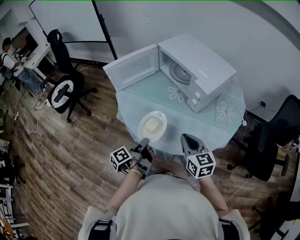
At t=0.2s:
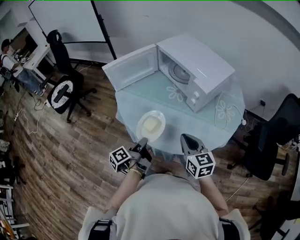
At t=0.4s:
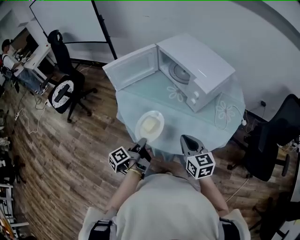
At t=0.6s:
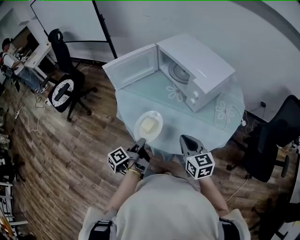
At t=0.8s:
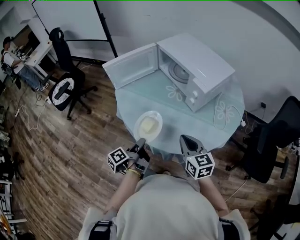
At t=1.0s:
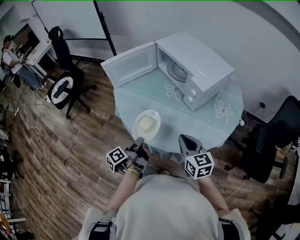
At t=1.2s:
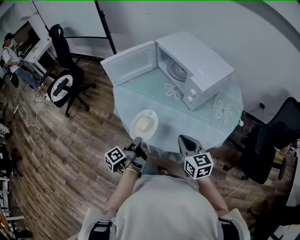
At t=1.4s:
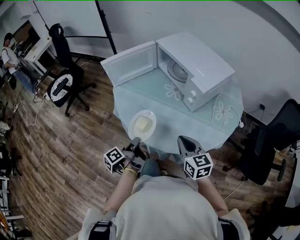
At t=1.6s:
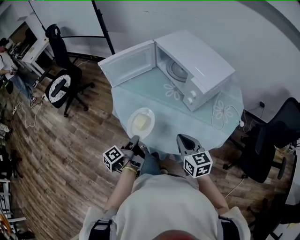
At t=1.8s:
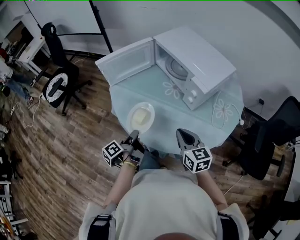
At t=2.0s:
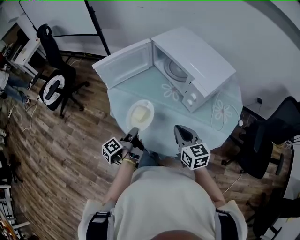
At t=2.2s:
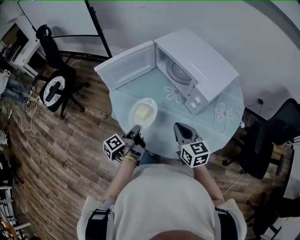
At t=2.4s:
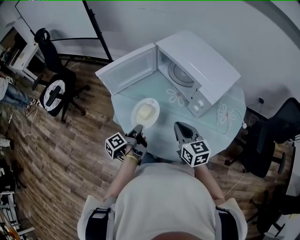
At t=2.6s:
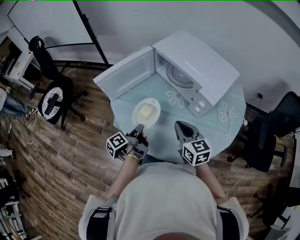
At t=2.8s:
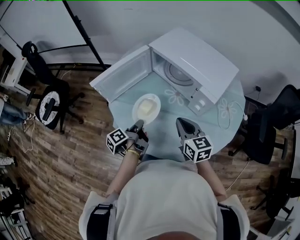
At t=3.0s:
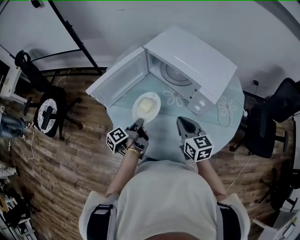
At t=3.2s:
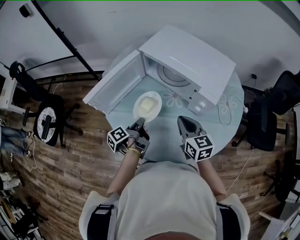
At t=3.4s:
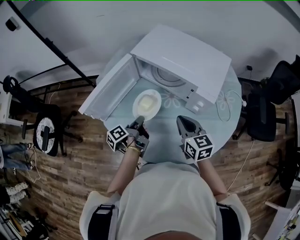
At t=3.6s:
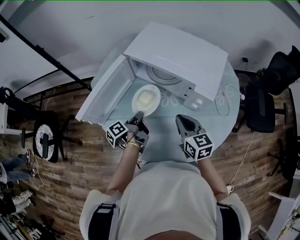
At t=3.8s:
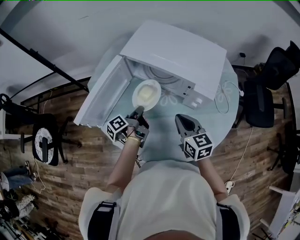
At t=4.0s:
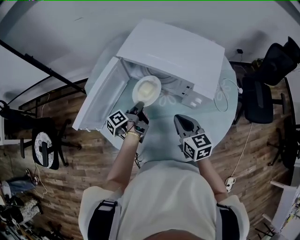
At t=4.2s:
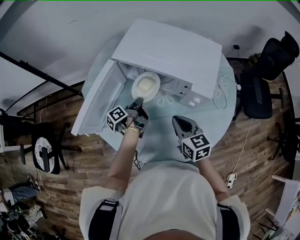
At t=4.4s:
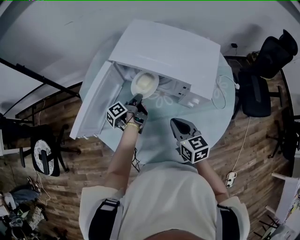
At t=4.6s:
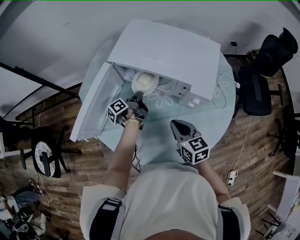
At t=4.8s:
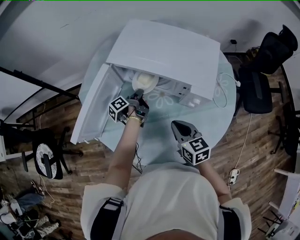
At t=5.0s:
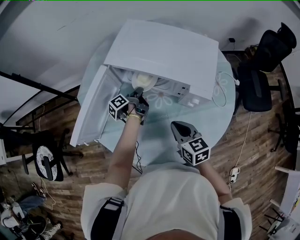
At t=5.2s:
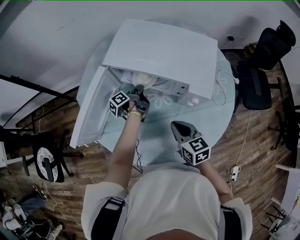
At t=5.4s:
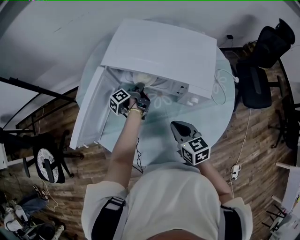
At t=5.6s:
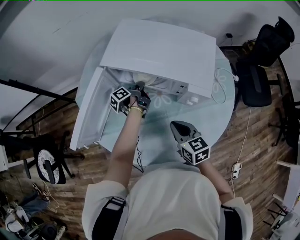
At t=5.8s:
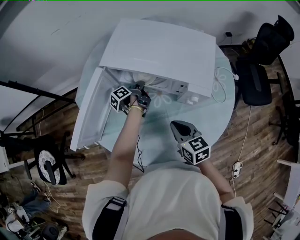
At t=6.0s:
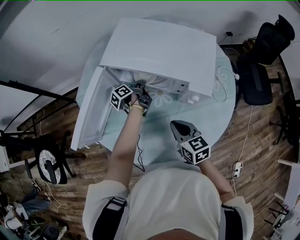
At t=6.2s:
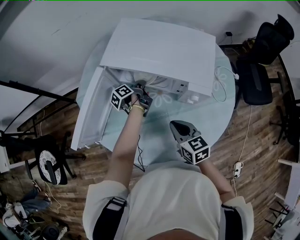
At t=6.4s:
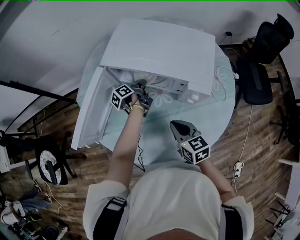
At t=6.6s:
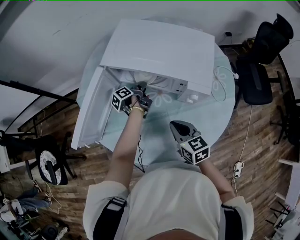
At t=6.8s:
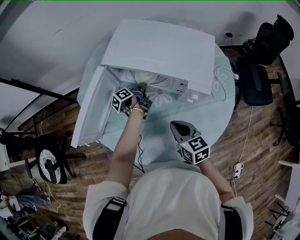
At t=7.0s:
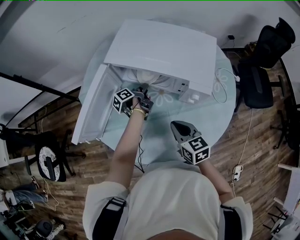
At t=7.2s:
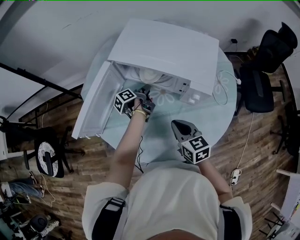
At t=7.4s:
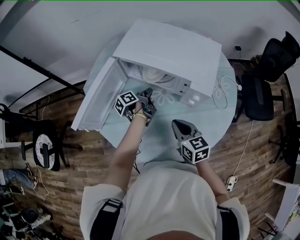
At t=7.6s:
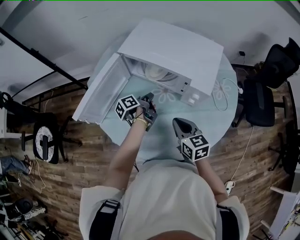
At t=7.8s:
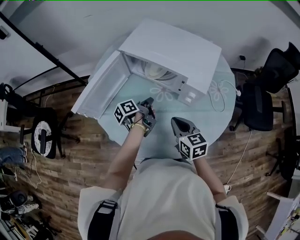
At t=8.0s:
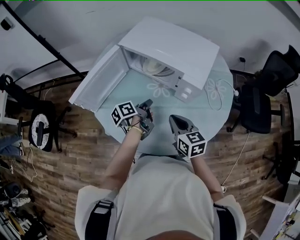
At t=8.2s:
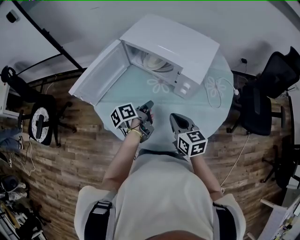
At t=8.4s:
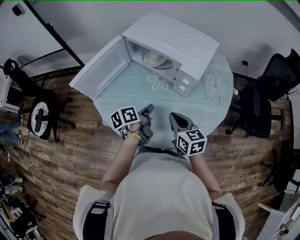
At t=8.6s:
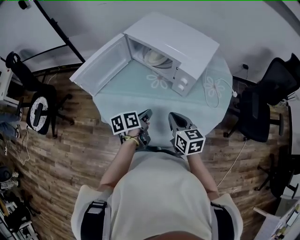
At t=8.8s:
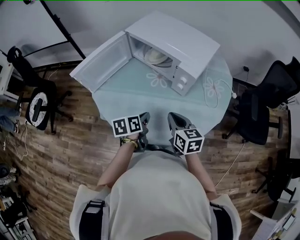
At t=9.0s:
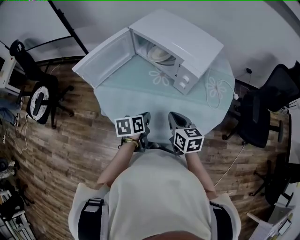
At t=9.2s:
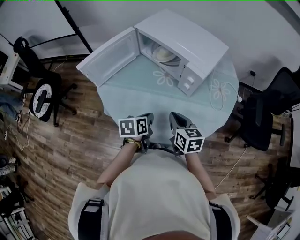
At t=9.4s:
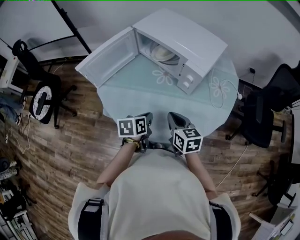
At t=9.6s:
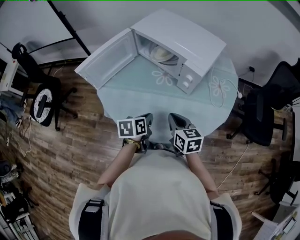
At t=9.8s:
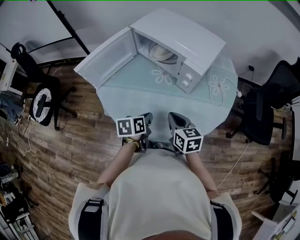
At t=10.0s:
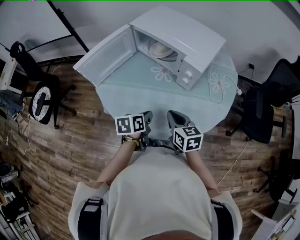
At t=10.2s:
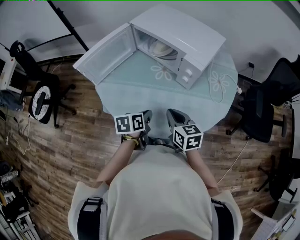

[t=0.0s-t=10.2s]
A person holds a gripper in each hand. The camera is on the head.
t=1.4s to t=3.0s: The right gripper changes place by approximately 20 cm.
t=3.0s to t=4.4s: The right gripper changes place by some 5 cm.
t=7.2s to t=8.8s: The right gripper moves about 10 cm.

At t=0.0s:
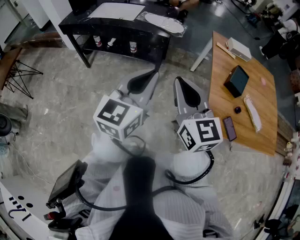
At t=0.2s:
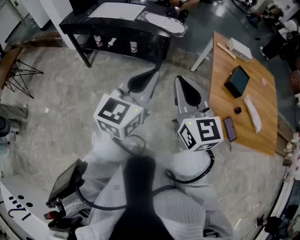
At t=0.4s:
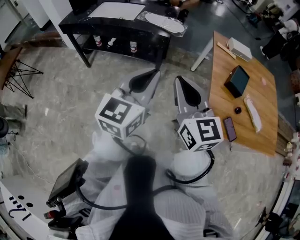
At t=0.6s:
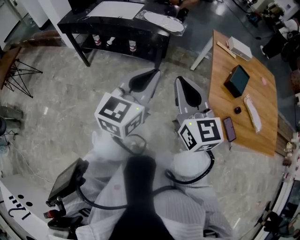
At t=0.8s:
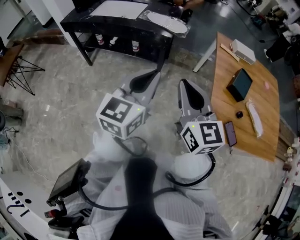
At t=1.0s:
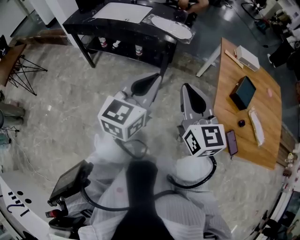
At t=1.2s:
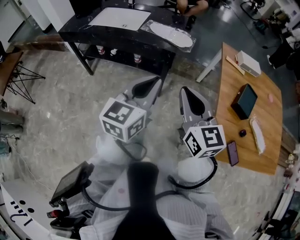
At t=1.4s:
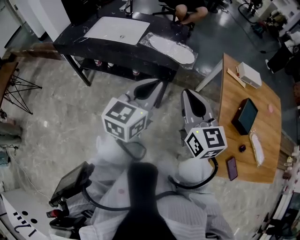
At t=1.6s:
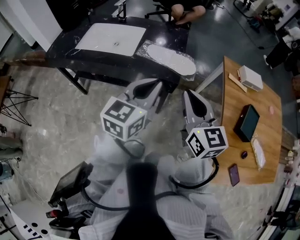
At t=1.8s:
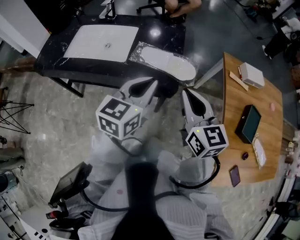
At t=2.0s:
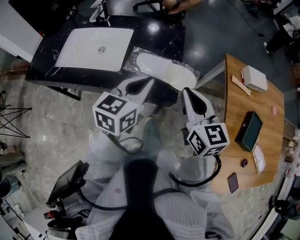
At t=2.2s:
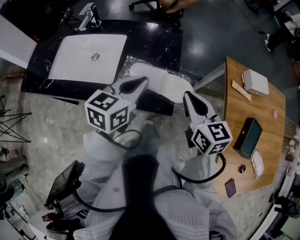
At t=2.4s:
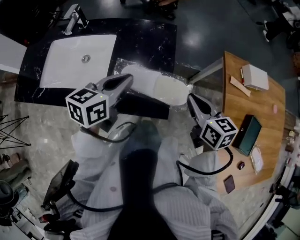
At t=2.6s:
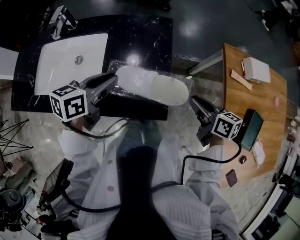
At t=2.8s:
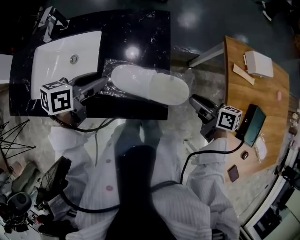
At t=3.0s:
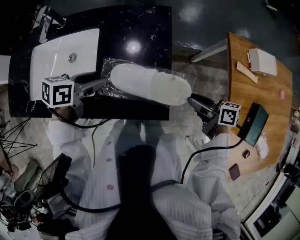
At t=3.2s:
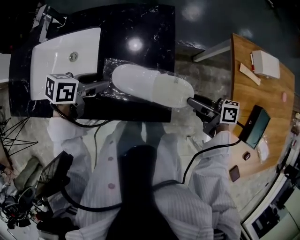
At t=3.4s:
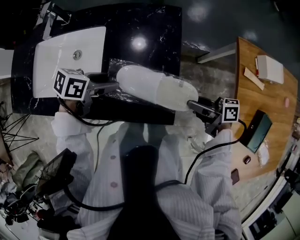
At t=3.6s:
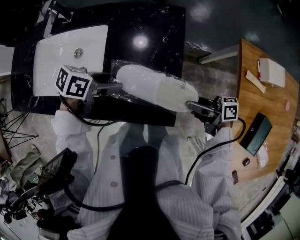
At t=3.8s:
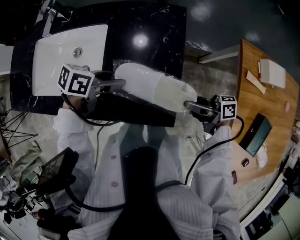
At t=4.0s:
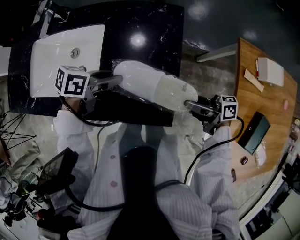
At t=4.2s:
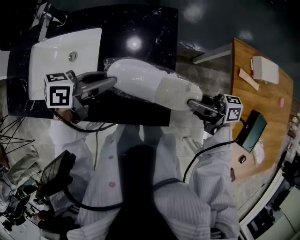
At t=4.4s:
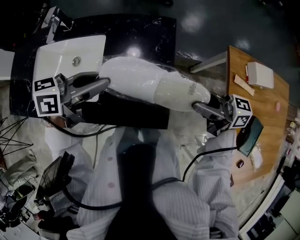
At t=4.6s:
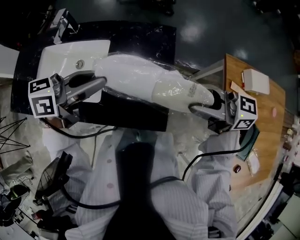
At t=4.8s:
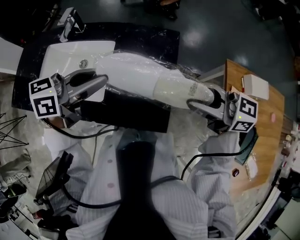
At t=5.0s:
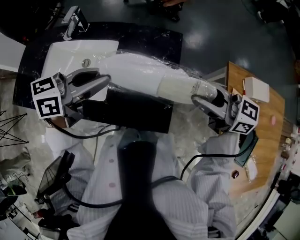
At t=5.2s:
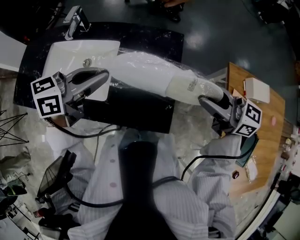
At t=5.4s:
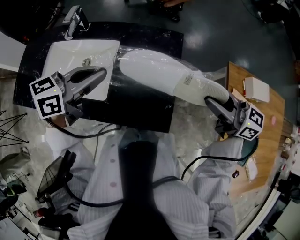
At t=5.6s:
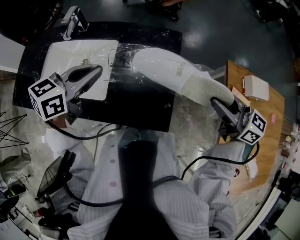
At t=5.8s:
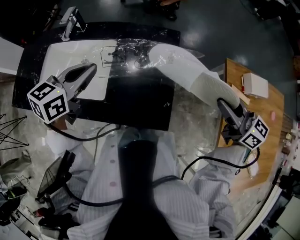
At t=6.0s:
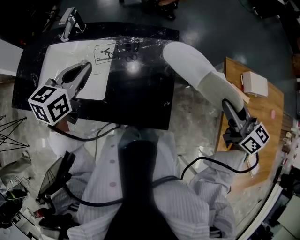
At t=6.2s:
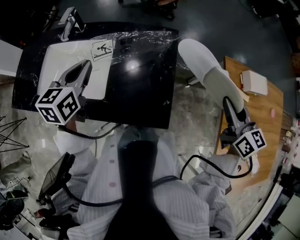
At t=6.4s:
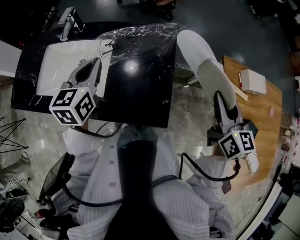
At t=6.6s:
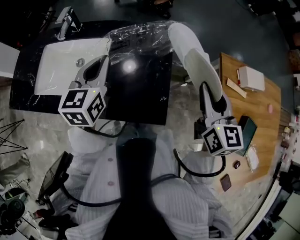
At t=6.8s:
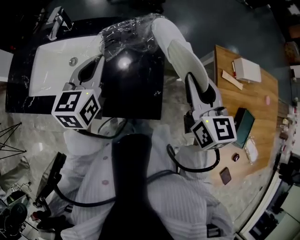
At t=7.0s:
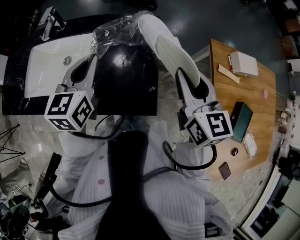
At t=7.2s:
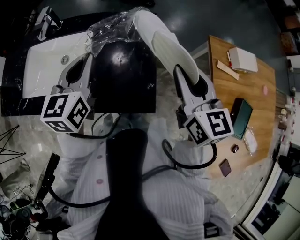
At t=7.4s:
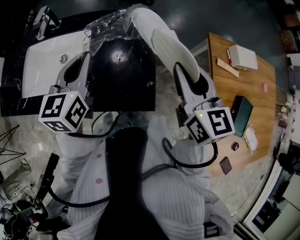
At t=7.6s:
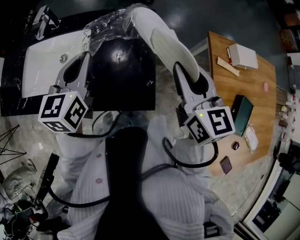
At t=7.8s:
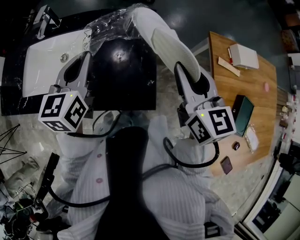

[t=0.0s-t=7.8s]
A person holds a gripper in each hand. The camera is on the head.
t=0.0s to t=1.6s: Both grippers travel together backward, roughly 20 cm.
t=1.6s to t=3.2s: The left gripper shifts by some 40 cm, angles its fingers downward, by approximately 30 degrees, and opens. The right gripper changes place by approximately 40 cm, twists roughly 60 degrees clockwise, seen from behind, and opens up.
t=3.2s to t=4.6s: The grippers both shift upward by approximately 20 cm. The right gripper rolls counterclockwise, seen from behind, by roughly 40 degrees; the left gripper swivels approximately 30 degrees, and closes.
t=4.6s to t=6.2s: The right gripper moves about 15 cm, and changes its angle by roughly 60 degrees, while the left gripper changes place by approximately 10 cm, and swivels roughly 50 degrees.
t=6.2s to t=7.8s: The right gripper goes about 10 cm to the left. The left gripper moves to the right, approximately 10 cm.

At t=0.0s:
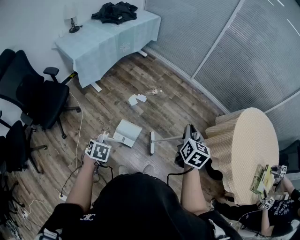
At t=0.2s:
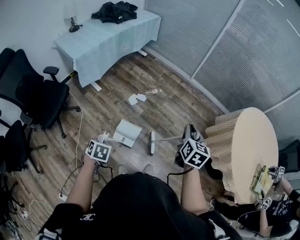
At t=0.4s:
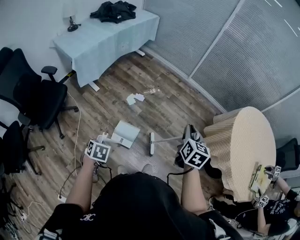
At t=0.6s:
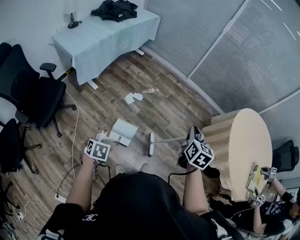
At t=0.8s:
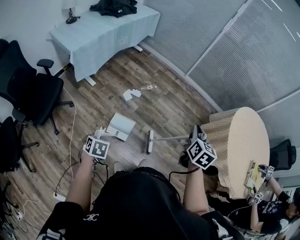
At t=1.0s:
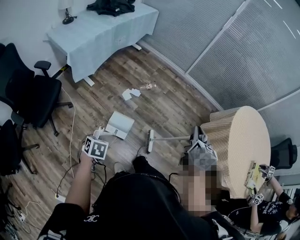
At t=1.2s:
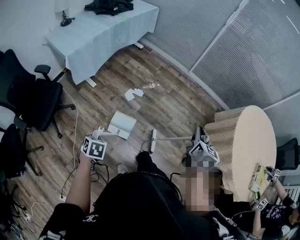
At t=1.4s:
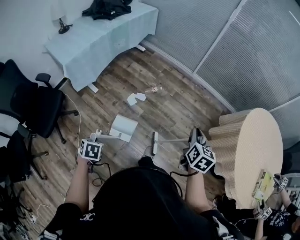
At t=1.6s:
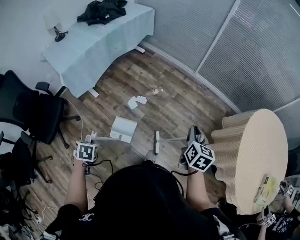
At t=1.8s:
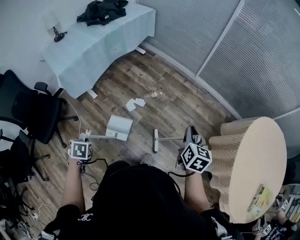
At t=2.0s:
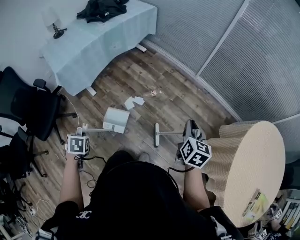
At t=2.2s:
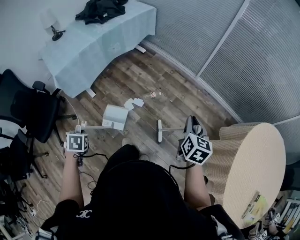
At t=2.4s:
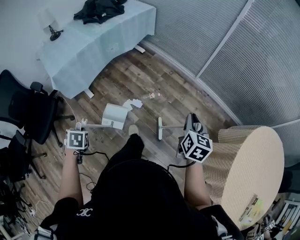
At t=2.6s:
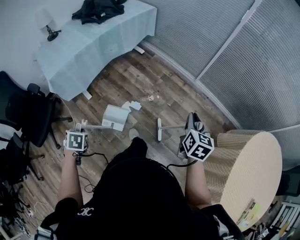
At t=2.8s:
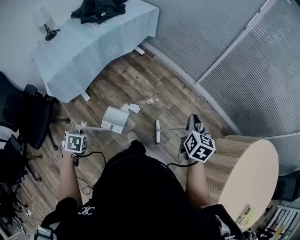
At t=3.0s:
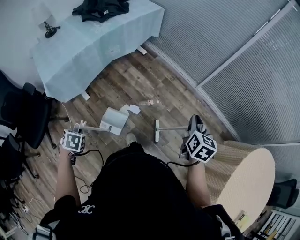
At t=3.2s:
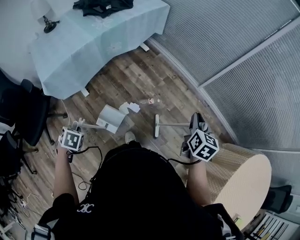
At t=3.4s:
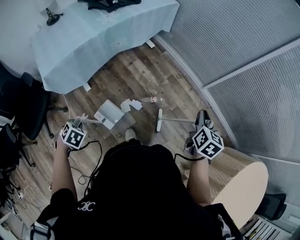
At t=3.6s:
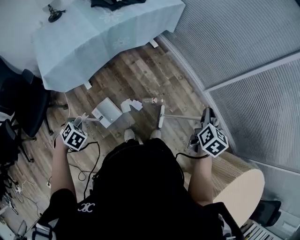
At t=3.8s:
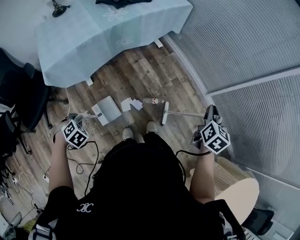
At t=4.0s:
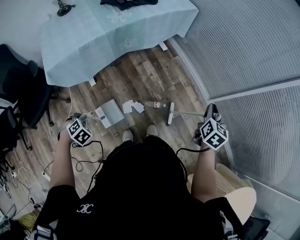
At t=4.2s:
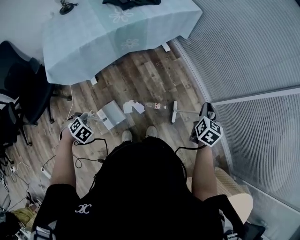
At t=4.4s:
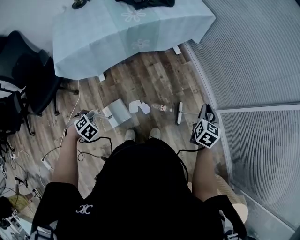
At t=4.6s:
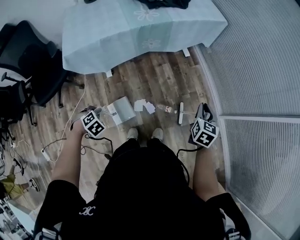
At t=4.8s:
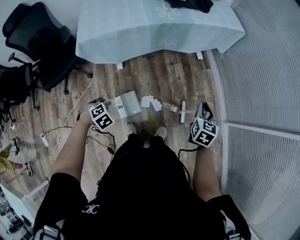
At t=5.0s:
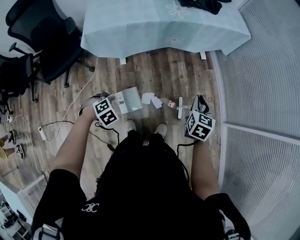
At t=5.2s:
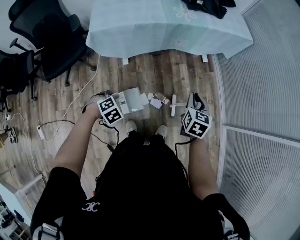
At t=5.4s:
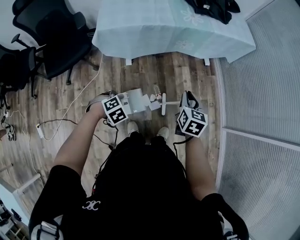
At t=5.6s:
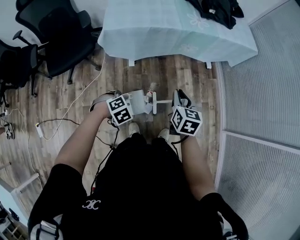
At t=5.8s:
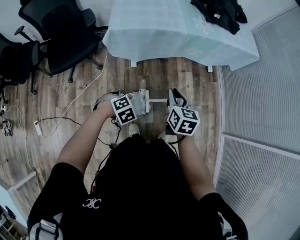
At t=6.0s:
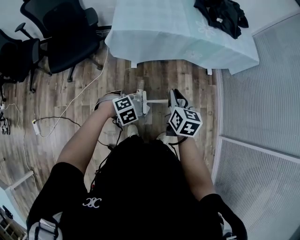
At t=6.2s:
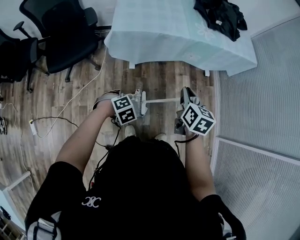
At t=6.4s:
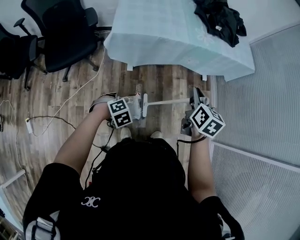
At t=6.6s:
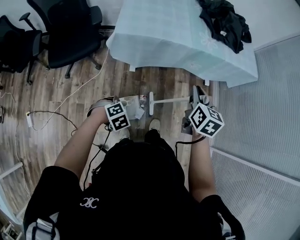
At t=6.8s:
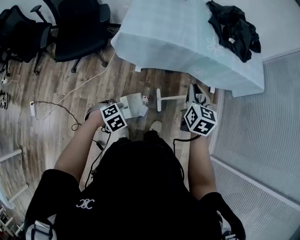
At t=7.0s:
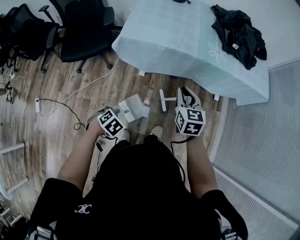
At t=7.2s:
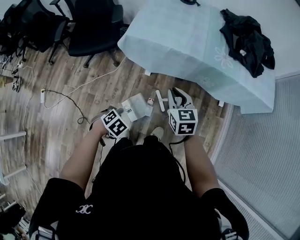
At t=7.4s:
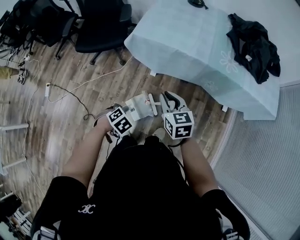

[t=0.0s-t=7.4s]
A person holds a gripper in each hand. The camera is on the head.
t=0.0s to t=1.4s: The right gripper shifts by some 10 cm.
t=1.4s to t=3.0s: The right gripper changes place by approximately 40 cm.
t=3.0s to t=4.4s: The right gripper moves roughly 30 cm, and swivels some 20 degrees.
t=4.4s to t=6.0s: The right gripper ends up approximately 50 cm from where it was, and rotates roughly 40 degrees.
t=6.0s to t=7.4s: The right gripper reaches approximately 5 cm upward, then returns, and swivels some 40 degrees.
